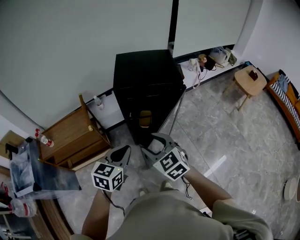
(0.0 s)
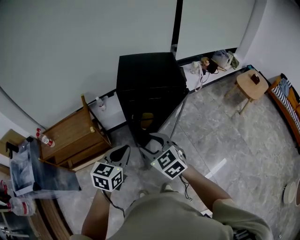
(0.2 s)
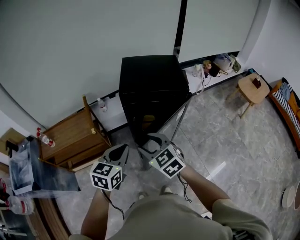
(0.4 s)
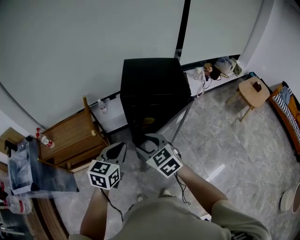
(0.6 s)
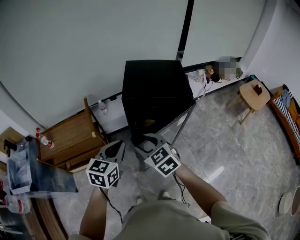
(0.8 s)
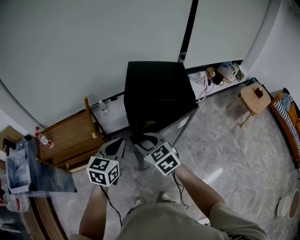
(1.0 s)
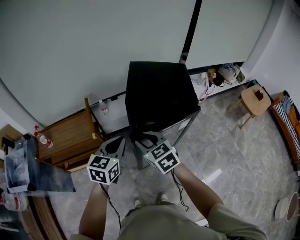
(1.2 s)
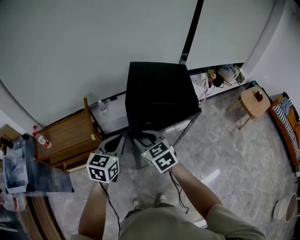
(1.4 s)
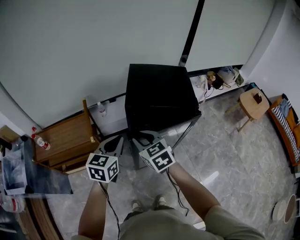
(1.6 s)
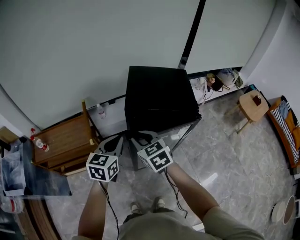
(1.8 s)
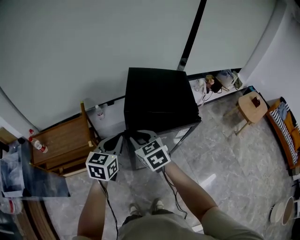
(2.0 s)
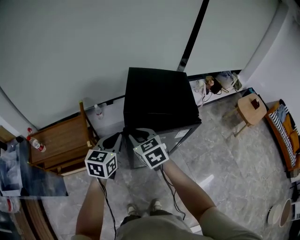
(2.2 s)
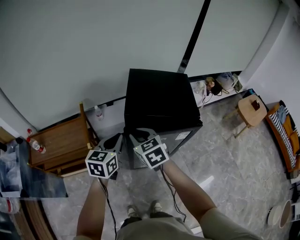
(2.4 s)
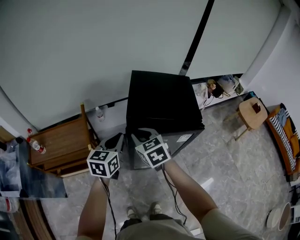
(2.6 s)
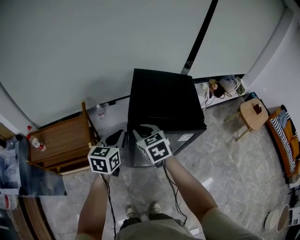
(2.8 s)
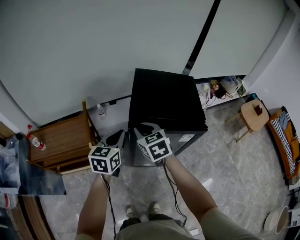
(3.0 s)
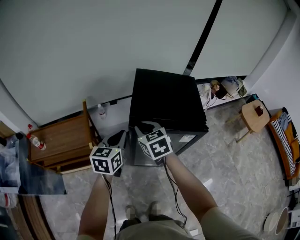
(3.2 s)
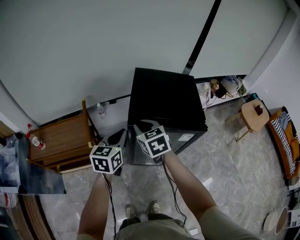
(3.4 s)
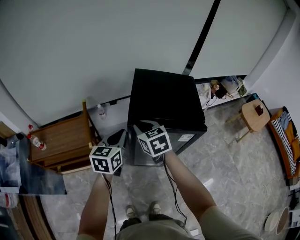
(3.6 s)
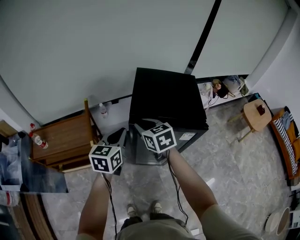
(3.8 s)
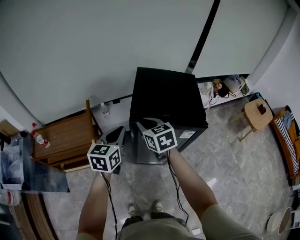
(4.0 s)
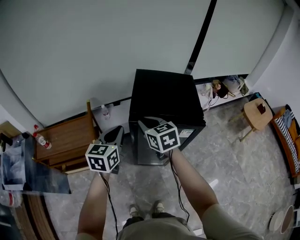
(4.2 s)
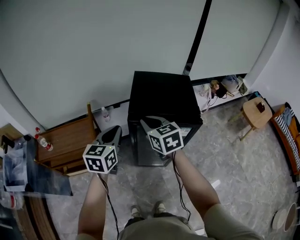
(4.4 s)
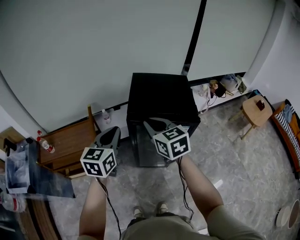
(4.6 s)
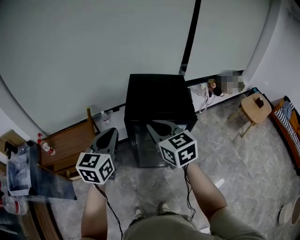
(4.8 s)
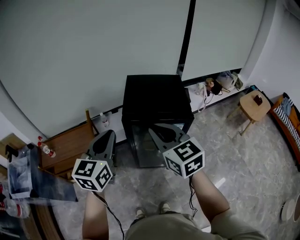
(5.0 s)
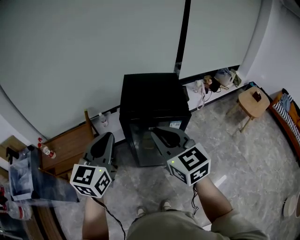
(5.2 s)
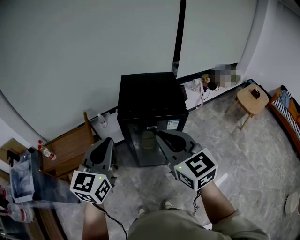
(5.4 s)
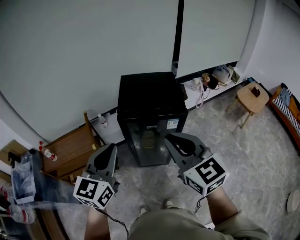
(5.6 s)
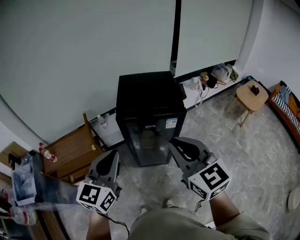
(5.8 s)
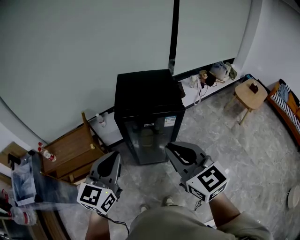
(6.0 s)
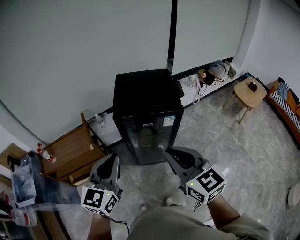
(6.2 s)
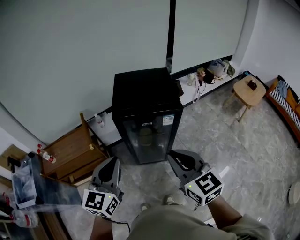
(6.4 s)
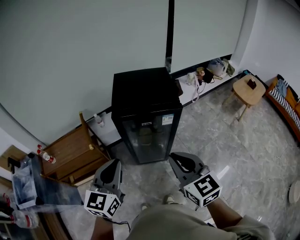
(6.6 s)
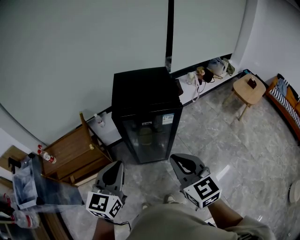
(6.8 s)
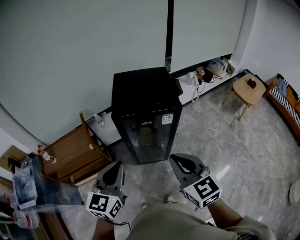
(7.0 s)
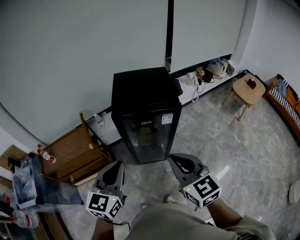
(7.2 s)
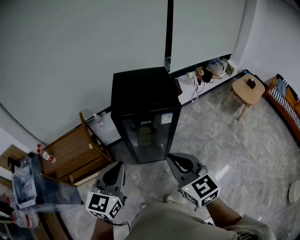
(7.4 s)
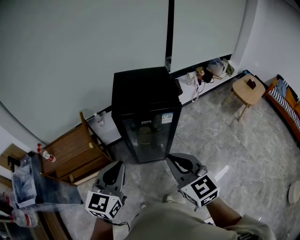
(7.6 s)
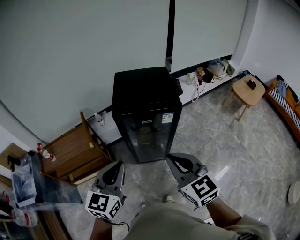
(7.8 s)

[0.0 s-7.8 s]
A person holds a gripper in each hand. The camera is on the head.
0.0 to 1.6 s: The right gripper travels forward and to the left by about 15 cm, and closes its fingers. The left gripper is displaced forward by approximately 15 cm.
1.6 to 3.2 s: Both grippers travel together forward, roughly 10 cm.
3.2 to 4.6 s: Both grippers move upward and backward, roughly 15 cm.
4.6 to 6.2 s: The left gripper shifts about 15 cm backward. Meanwhile the right gripper moves backward and to the right, approximately 25 cm.
6.2 to 7.8 s: The grippers move only a little.

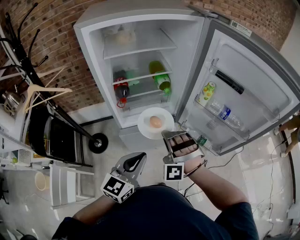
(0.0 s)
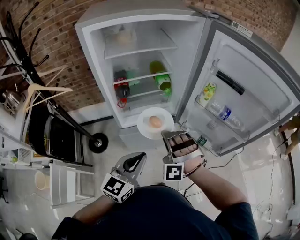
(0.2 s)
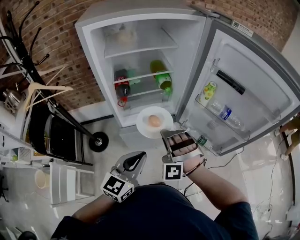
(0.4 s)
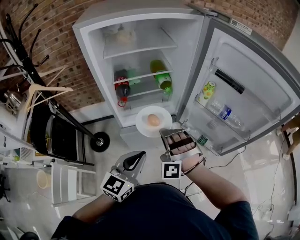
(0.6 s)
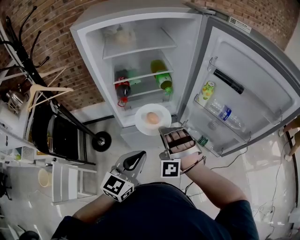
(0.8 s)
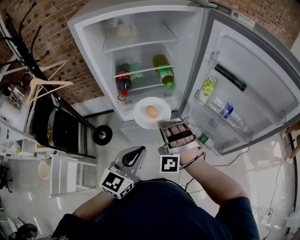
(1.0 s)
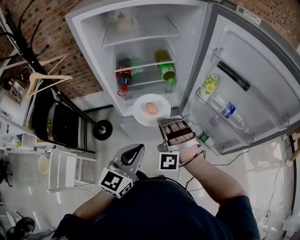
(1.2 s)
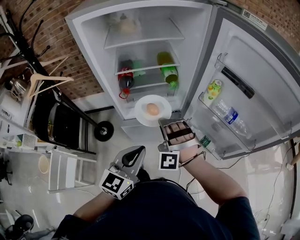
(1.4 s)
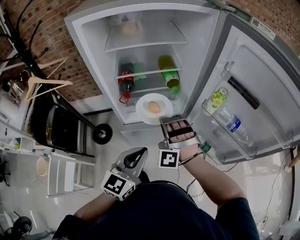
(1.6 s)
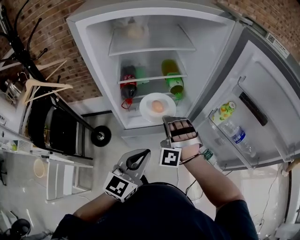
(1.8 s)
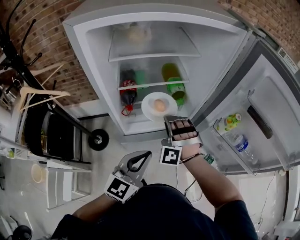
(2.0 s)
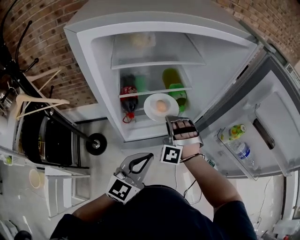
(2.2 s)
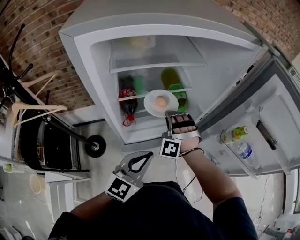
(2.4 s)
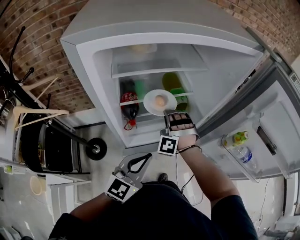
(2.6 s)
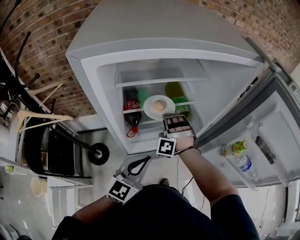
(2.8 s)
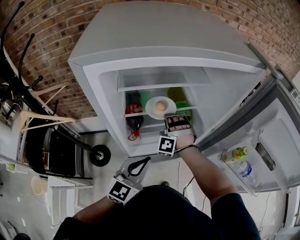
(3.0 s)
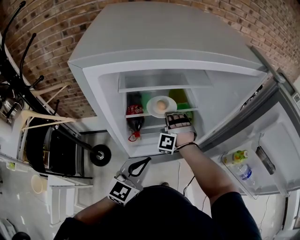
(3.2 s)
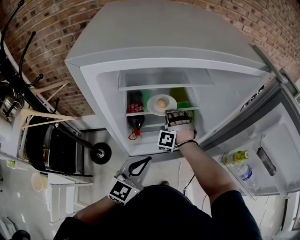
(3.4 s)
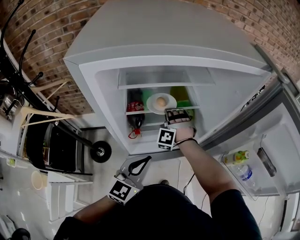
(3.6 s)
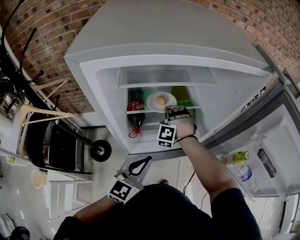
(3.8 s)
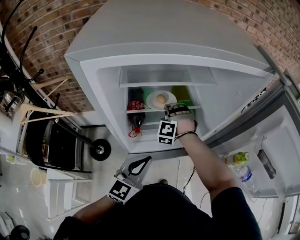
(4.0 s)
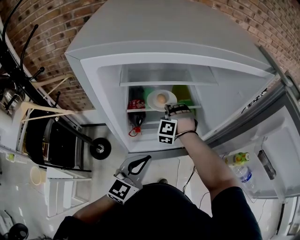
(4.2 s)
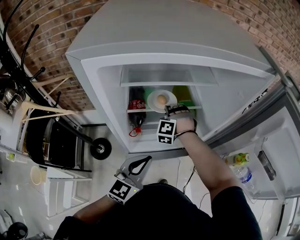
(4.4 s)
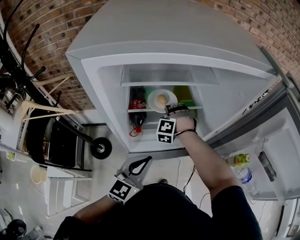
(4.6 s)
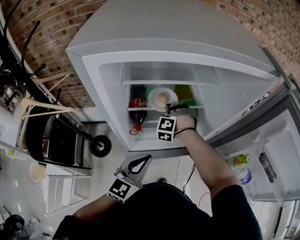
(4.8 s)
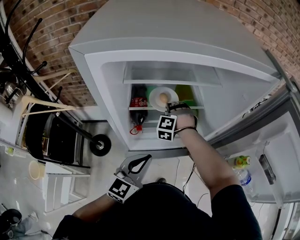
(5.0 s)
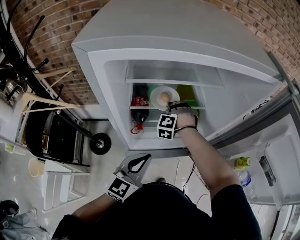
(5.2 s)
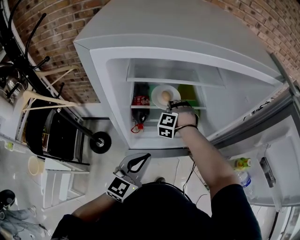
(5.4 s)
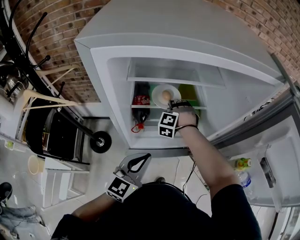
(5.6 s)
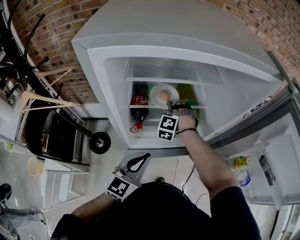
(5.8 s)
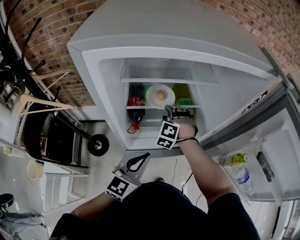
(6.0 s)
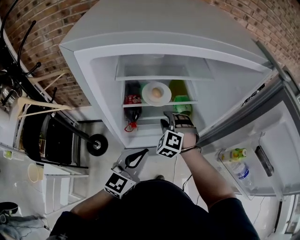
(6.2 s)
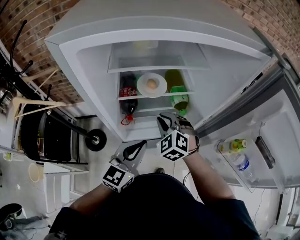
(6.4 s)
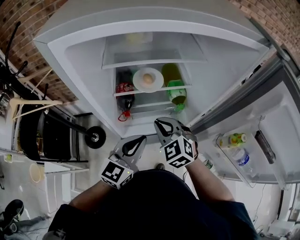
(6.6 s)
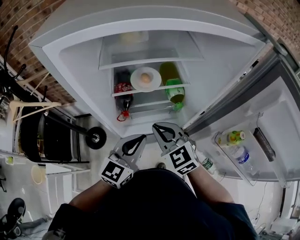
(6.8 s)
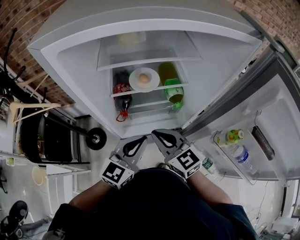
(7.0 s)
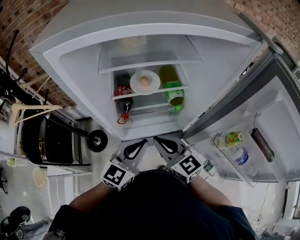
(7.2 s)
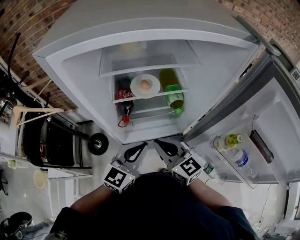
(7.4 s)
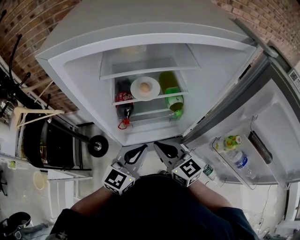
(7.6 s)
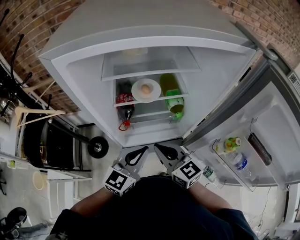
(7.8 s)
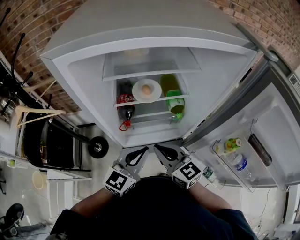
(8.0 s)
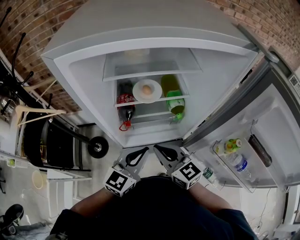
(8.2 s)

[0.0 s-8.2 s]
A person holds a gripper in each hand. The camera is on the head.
0.0 to 1.6 s: The left gripper shifts by some 5 cm.
1.6 to 3.2 s: The left gripper moves some 20 cm.

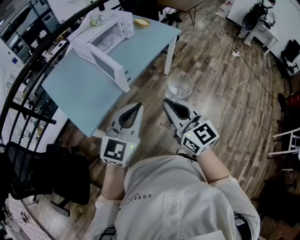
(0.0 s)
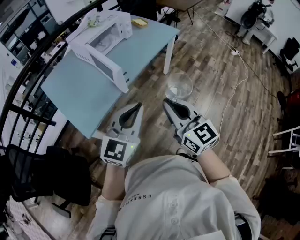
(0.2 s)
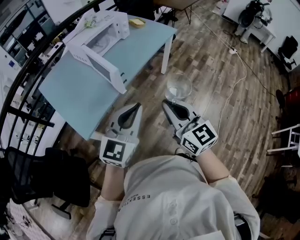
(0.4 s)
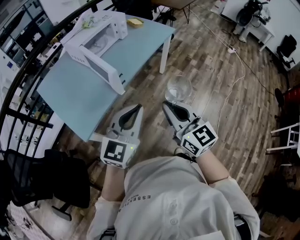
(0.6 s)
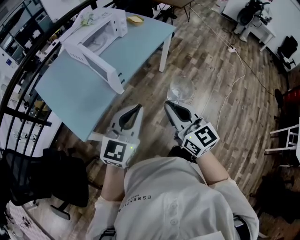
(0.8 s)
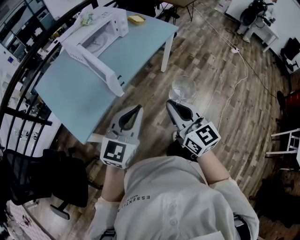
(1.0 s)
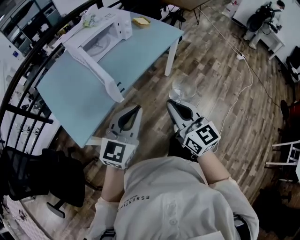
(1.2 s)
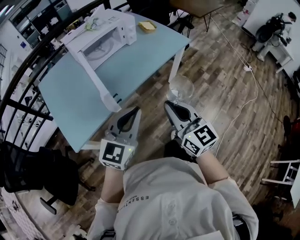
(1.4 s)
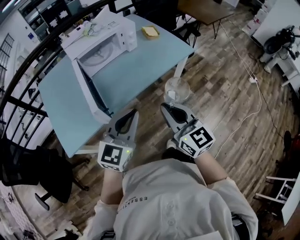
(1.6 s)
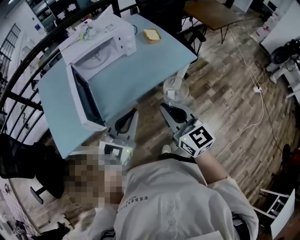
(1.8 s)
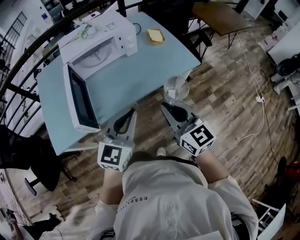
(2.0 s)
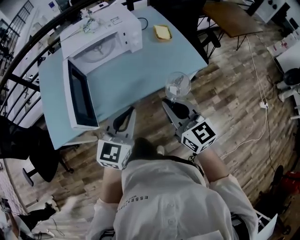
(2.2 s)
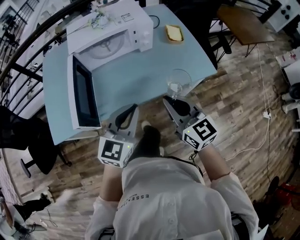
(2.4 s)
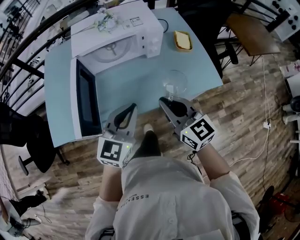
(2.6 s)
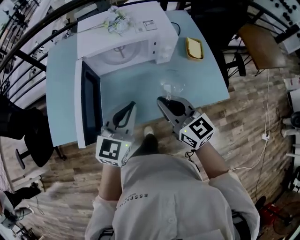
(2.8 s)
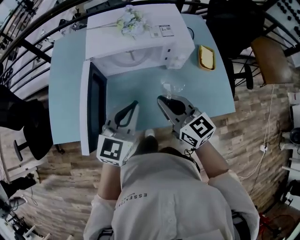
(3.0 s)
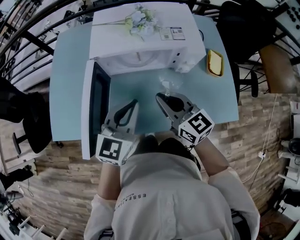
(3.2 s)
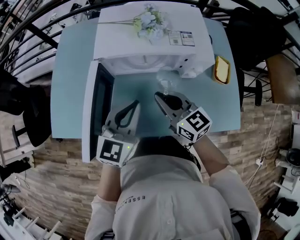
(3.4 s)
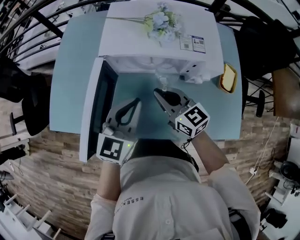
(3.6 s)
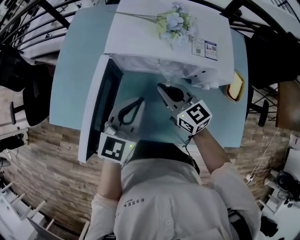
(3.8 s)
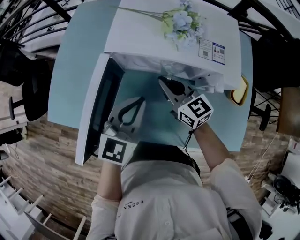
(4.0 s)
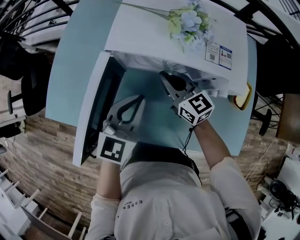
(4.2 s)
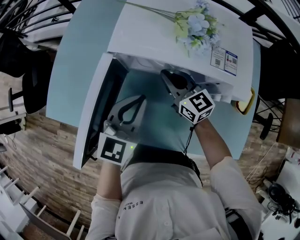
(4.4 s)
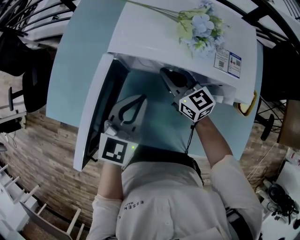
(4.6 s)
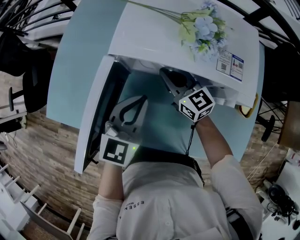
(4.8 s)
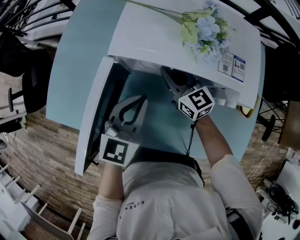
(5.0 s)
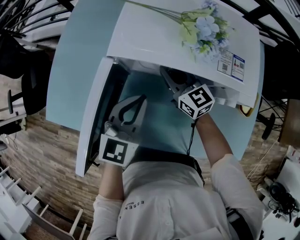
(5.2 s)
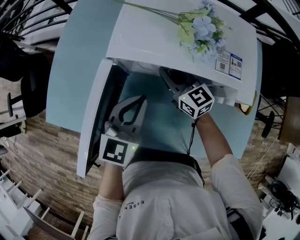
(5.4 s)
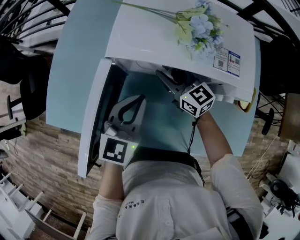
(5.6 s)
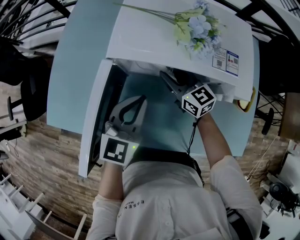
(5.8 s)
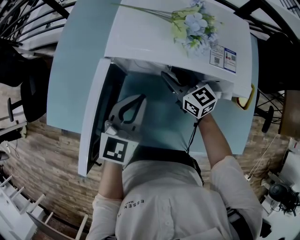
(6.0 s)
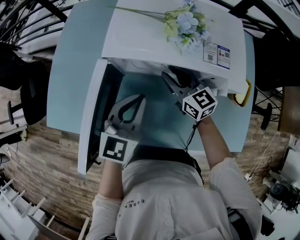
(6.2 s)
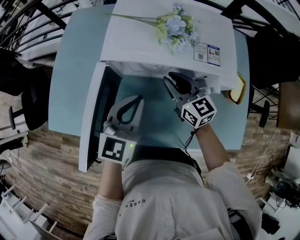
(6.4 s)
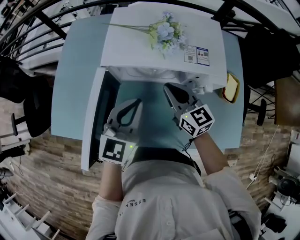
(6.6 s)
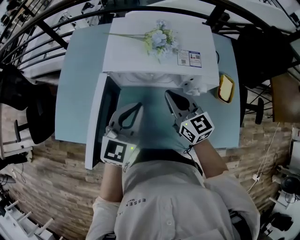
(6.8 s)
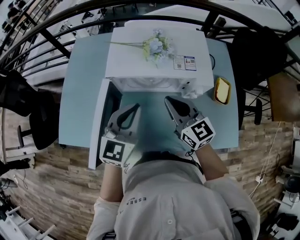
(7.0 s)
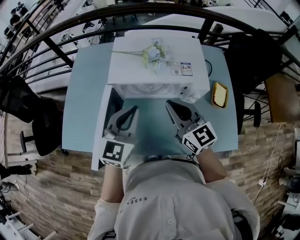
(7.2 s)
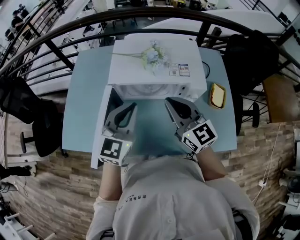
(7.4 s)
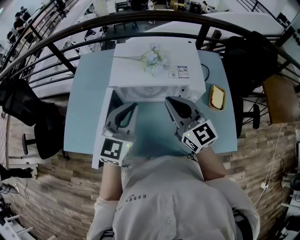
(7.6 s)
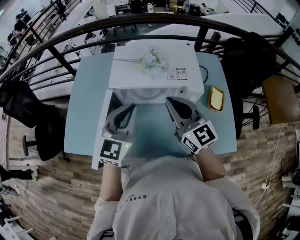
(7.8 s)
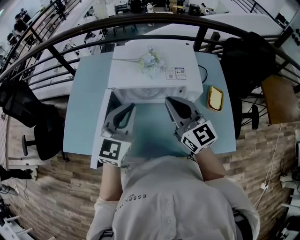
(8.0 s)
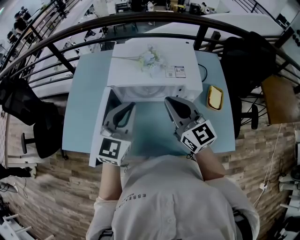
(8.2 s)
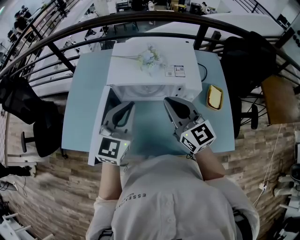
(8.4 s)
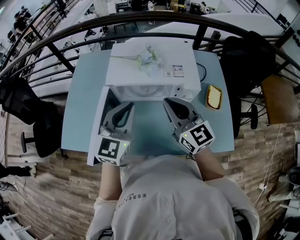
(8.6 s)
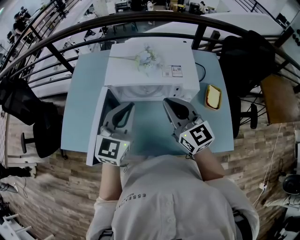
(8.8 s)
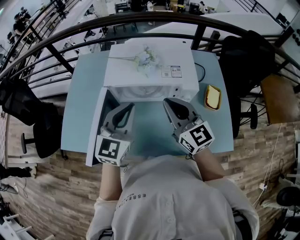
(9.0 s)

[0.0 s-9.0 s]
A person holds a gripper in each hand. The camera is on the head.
0.0 to 1.6 s: Both grippers move forward and to the right, some 25 cm.
1.6 to 3.0 s: The left gripper ends up roughly 30 cm from where it was, and rotates some 30 degrees; the right gripper moves some 35 cm, and swivels some 40 degrees.
3.0 to 4.4 s: The right gripper moves forward and downward, about 25 cm. Meanwhile the left gripper shifts roughly 15 cm forward and downward.
4.4 to 6.0 s: The right gripper opens its fingers.
6.0 to 7.6 s: The left gripper heads upward, covering roughly 15 cm. Meanwhile the right gripper heads upward and backward, covering about 30 cm, swivels some 30 degrees, and closes its fingers.
7.6 to 9.0 s: The grippers stay close to where they were, moving slightly.
